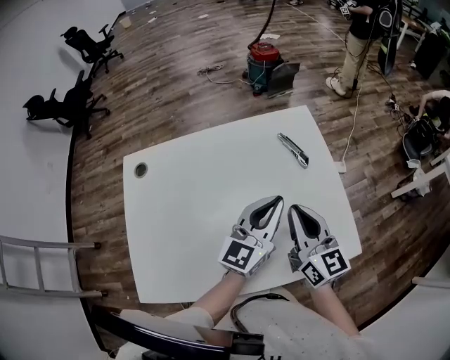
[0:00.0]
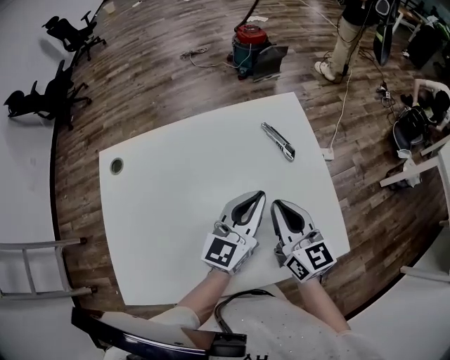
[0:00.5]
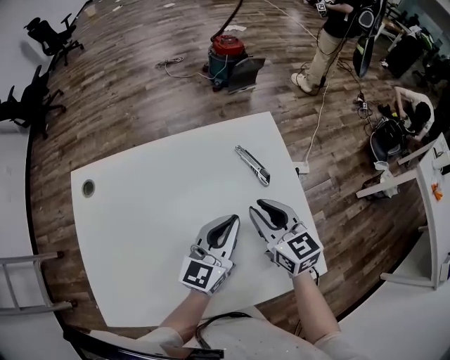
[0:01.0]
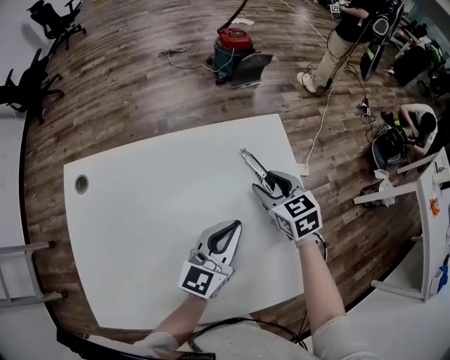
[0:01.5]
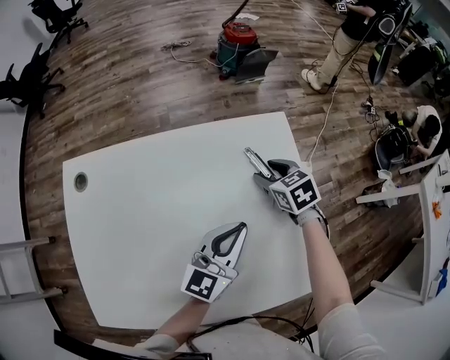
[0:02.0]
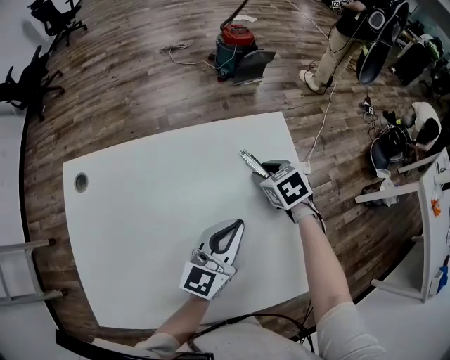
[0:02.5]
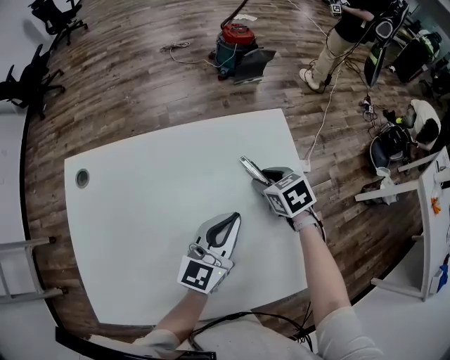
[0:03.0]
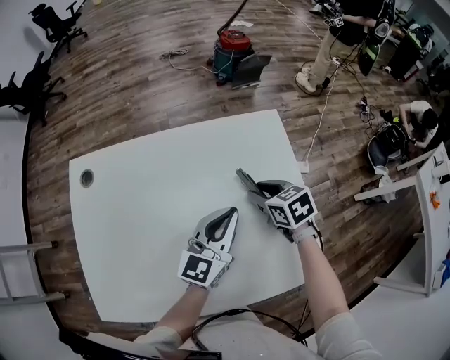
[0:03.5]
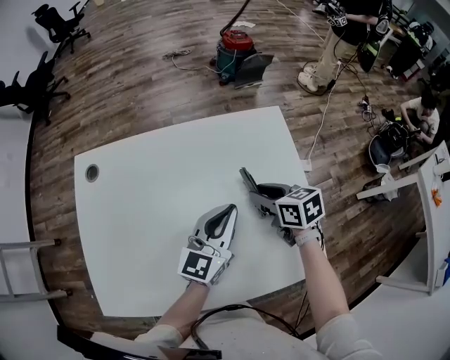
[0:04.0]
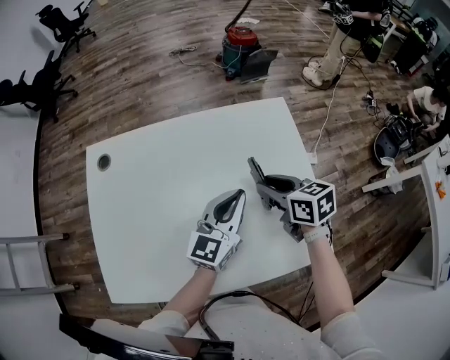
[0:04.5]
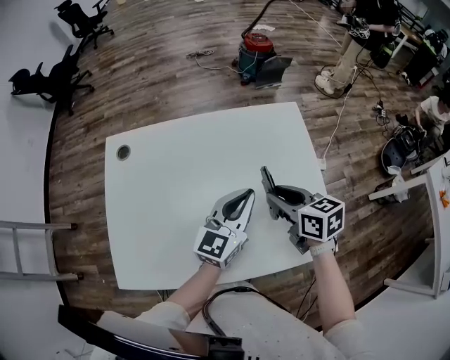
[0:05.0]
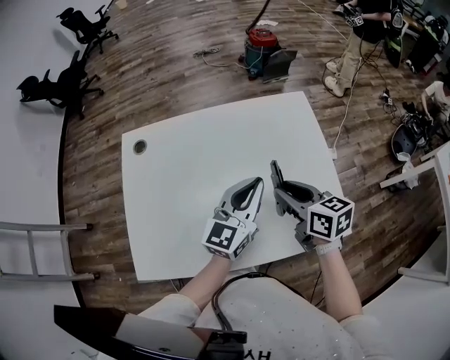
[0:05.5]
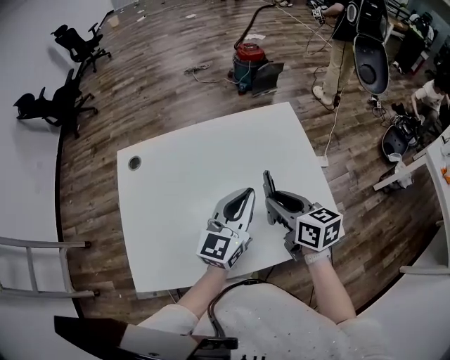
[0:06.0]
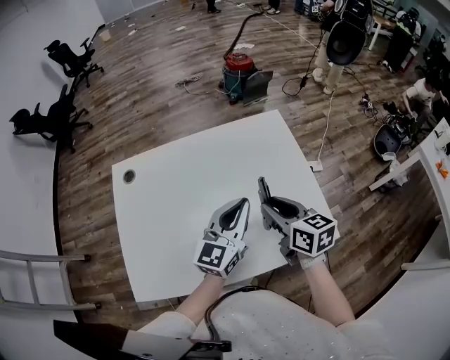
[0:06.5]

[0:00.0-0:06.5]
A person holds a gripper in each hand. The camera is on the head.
0:00.0 to 0:02.0: The right gripper is displaced forward and downward by roughly 30 cm, points its fingers approximately 50 degrees further downward, and opens; the left gripper is displaced downward and forward by approximately 10 cm.
0:02.0 to 0:04.5: The right gripper shifts approximately 15 cm backward, upward and to the left, and turns by about 30 degrees.
0:04.5 to 0:06.5: Both grippers move backward and upward, approximately 10 cm.

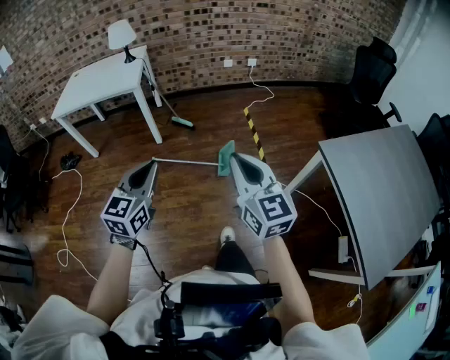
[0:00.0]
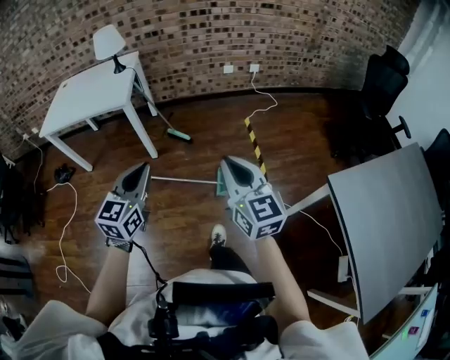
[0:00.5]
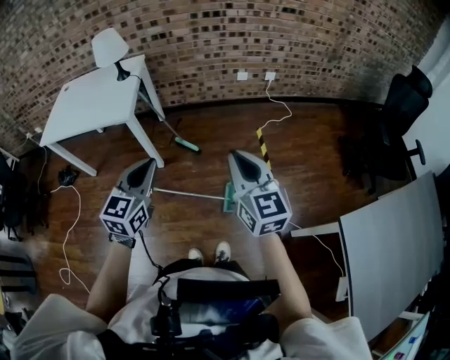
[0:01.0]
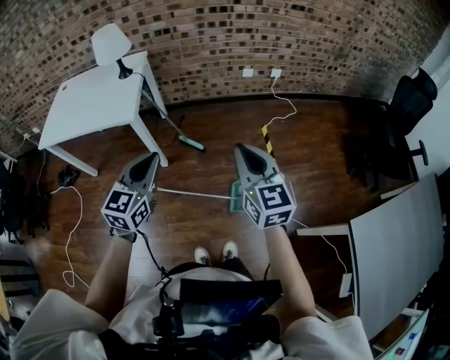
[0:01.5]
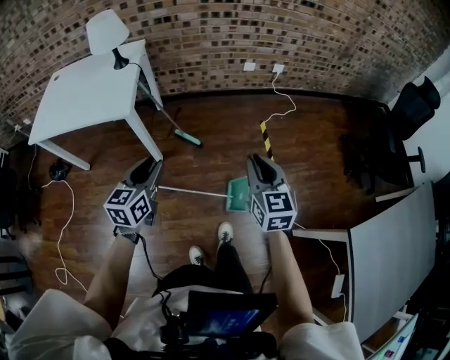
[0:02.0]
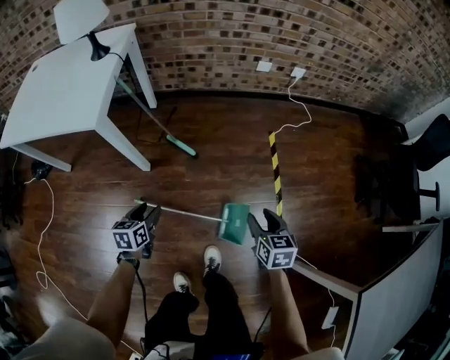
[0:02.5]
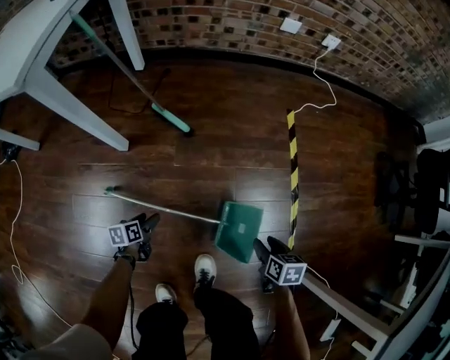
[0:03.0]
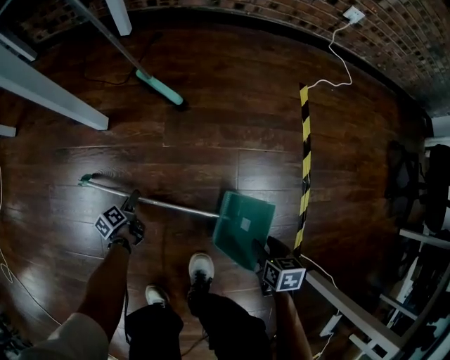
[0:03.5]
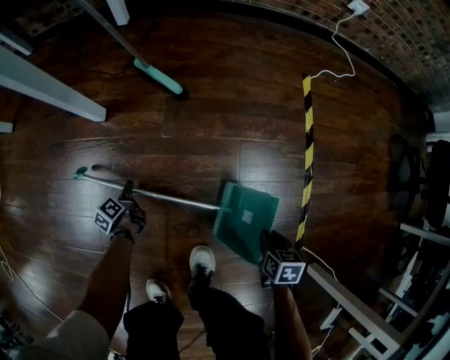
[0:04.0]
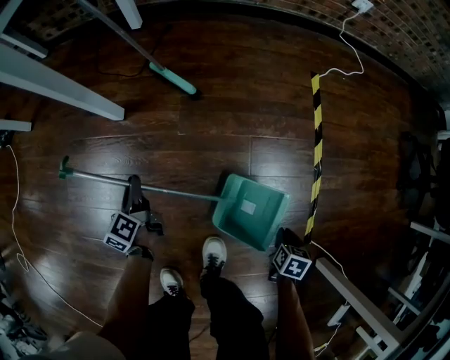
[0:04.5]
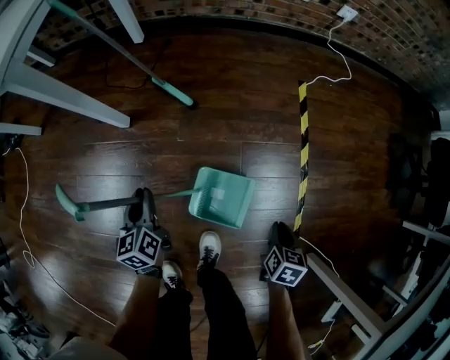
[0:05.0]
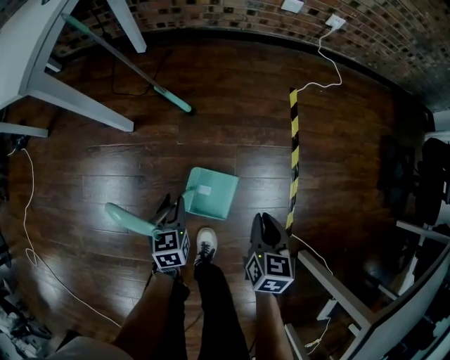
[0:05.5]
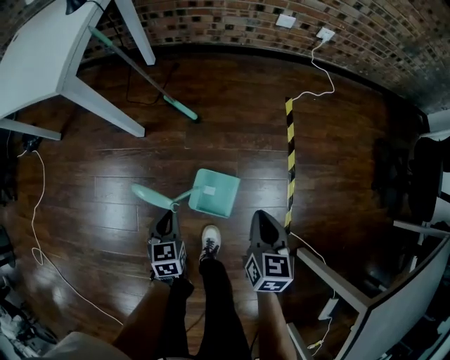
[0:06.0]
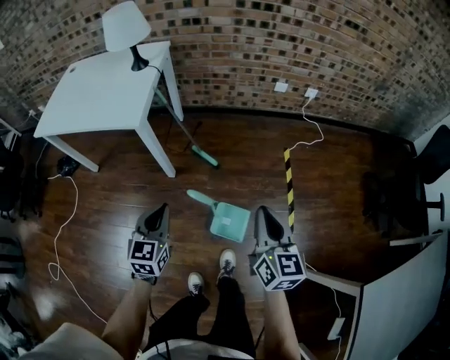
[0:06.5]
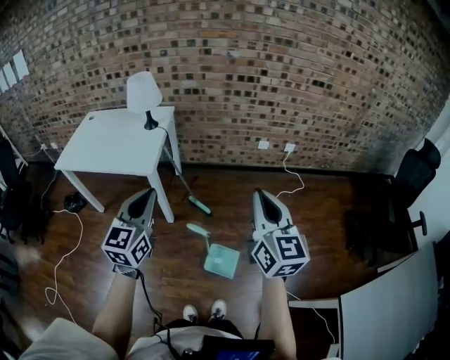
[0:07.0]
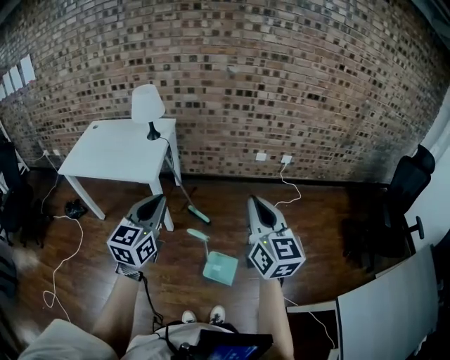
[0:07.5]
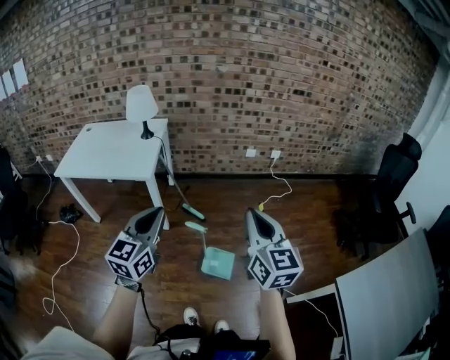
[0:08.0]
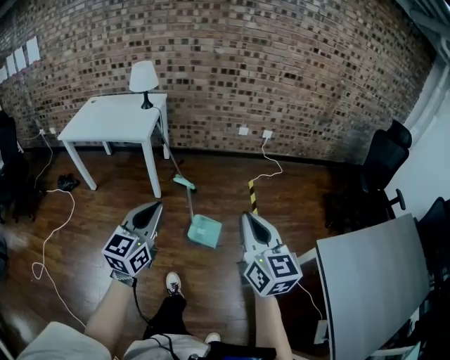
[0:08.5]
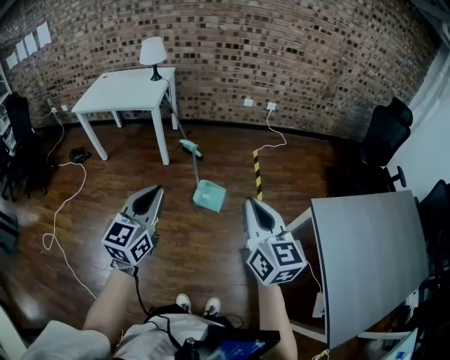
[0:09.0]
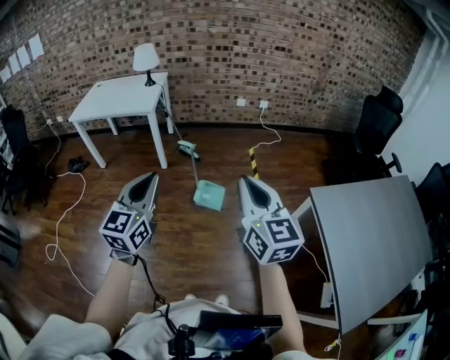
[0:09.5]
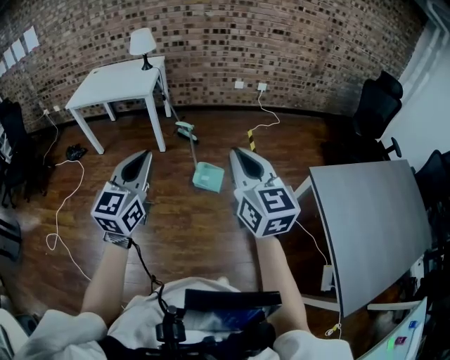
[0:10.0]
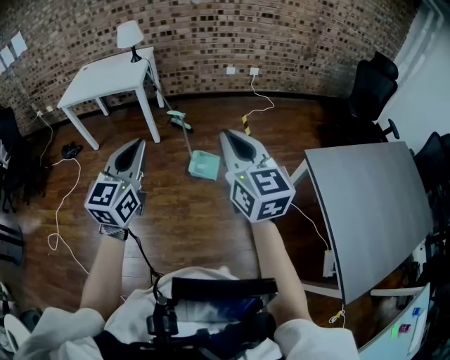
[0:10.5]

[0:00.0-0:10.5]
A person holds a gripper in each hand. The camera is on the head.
0:00.0 to 0:02.0: Both grippers are carried forward, approximately 50 cm. The left gripper opens its fingers.
0:02.0 to 0:04.0: The two grippers go some 80 cm downward. The right gripper angles its fingers downward, by some 50 degrees, and opens, then closes once more. Meanwhile the left gripper twists roughly 70 degrees counterclockwise, seen from behind, and opens and closes again.
0:04.0 to 0:06.5: Both grippers move upward, approximately 70 cm. The right gripper angles its fingers upward, by roughly 50 degrees, while the left gripper rolls clockwise, seen from behind, by approximately 70 degrees, and closes its fingers.
0:06.5 to 0:08.5: Both grippers travel together backward and upward, approximately 40 cm. The left gripper rotates approximately 20 degrees.
0:08.5 to 0:10.5: Both grippers travel together backward, approximately 20 cm.

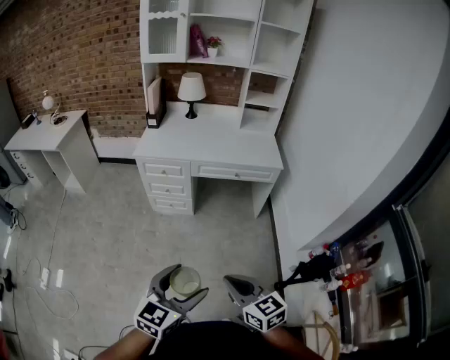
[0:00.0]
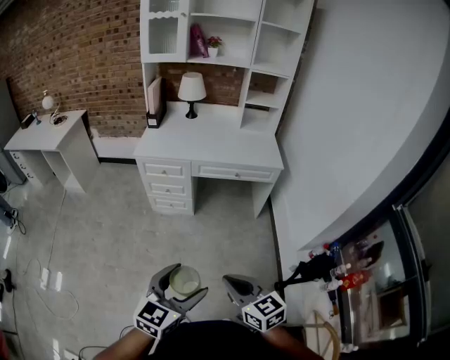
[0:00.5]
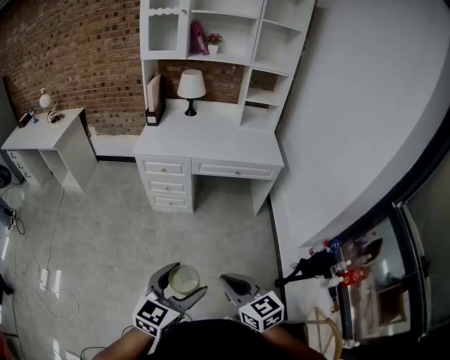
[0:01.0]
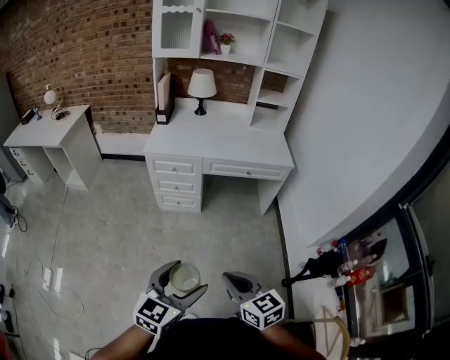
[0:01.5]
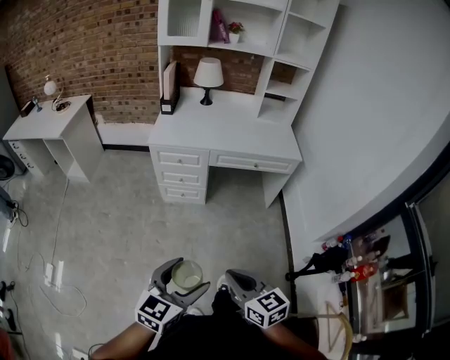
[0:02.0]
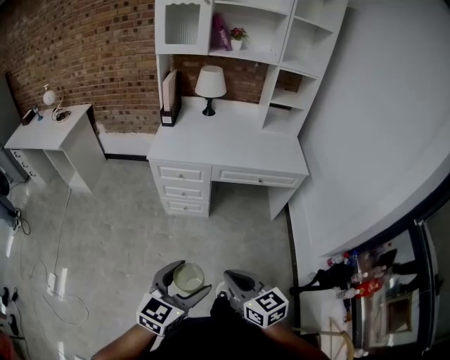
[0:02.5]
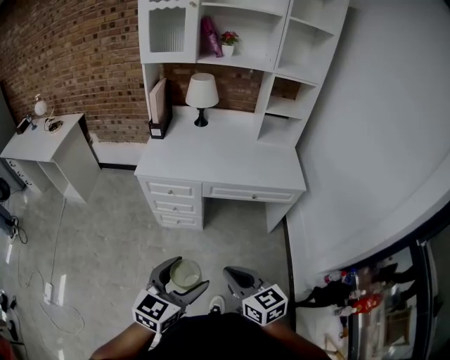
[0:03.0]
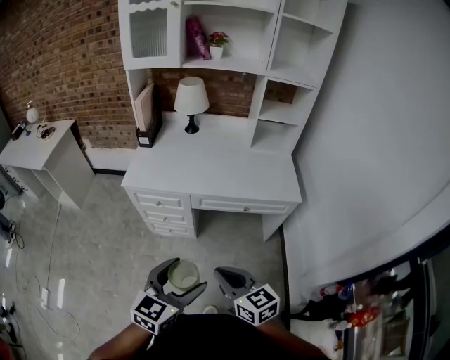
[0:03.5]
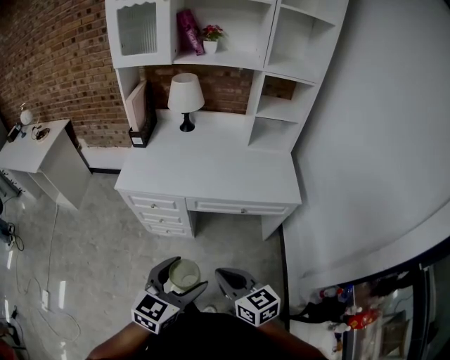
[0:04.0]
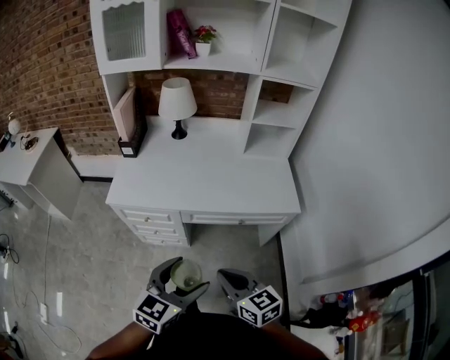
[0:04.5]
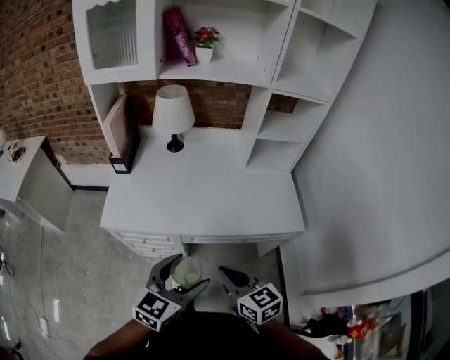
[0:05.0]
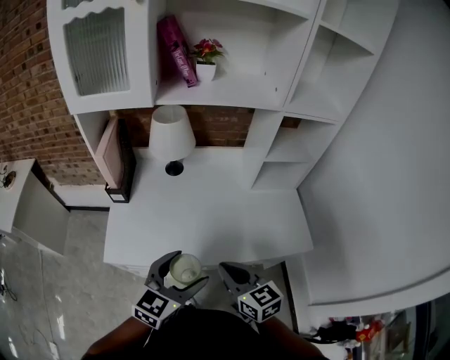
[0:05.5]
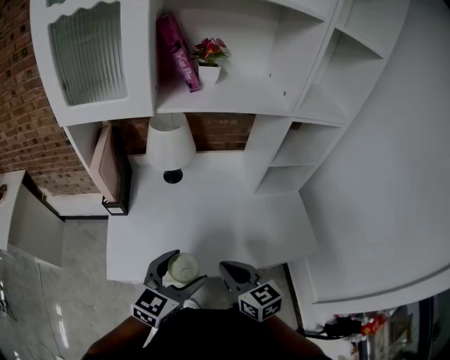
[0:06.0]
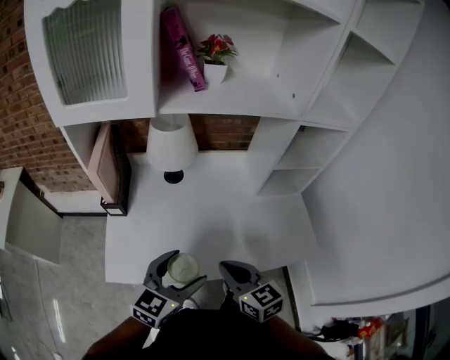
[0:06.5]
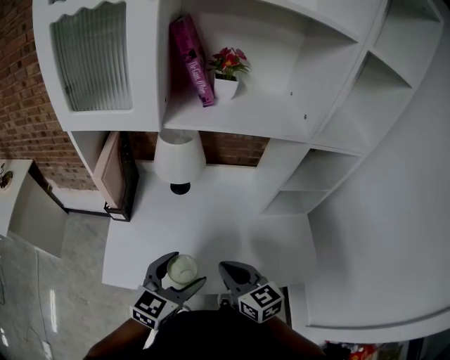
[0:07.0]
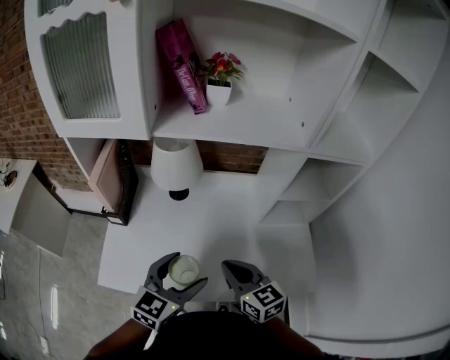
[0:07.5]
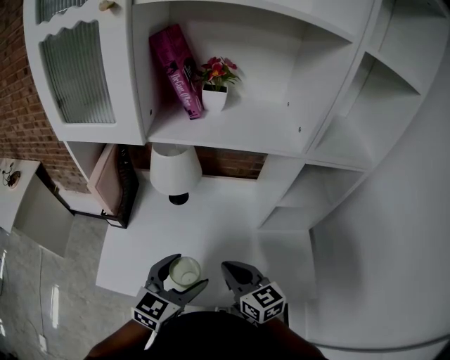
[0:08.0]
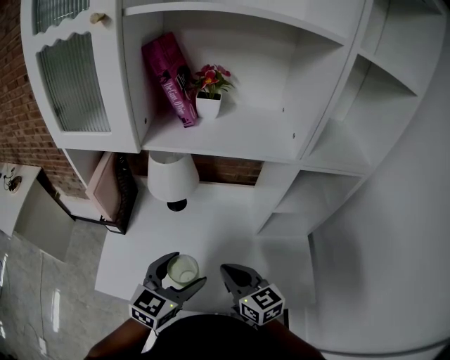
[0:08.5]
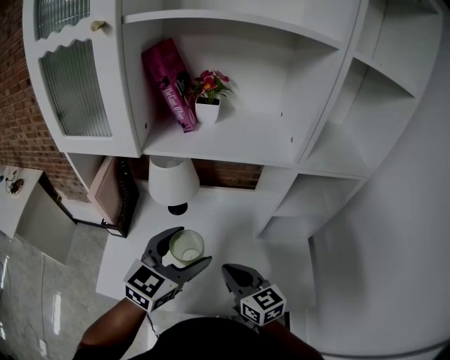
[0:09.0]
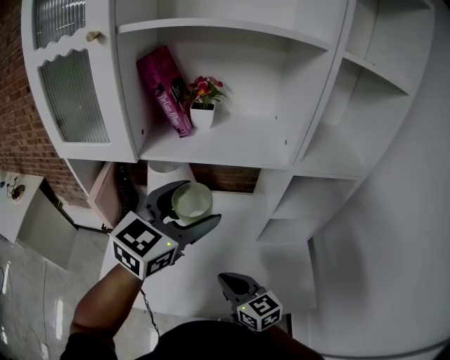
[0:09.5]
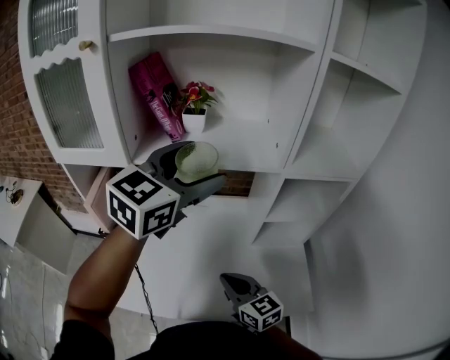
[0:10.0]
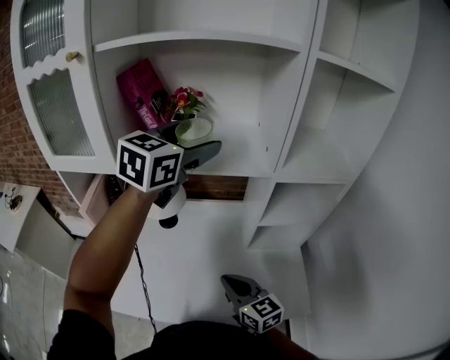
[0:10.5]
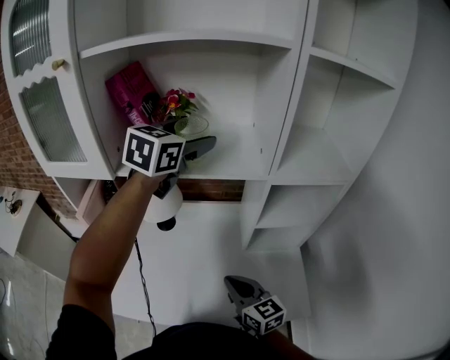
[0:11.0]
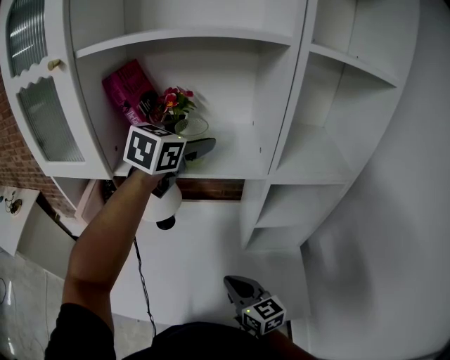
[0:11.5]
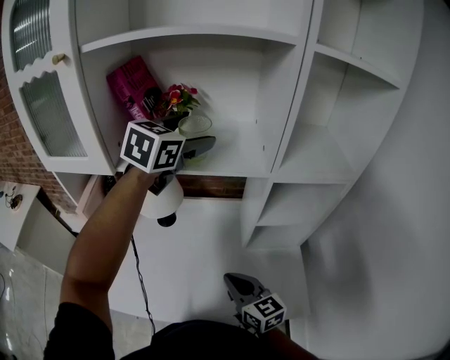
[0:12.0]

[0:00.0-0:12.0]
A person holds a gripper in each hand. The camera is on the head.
0:00.0 to 0:02.0: The two grippers go about 10 cm to the left.
0:02.0 to 0:04.0: The left gripper moves forward and to the right, about 35 cm. Meanwhile the right gripper goes roughly 30 cm forward.
0:04.0 to 0:06.0: Both grippers move forward, about 40 cm.
0:06.0 to 0:08.0: Both grippers move forward and to the right, about 15 cm.
0:08.0 to 0:10.0: The left gripper shifts about 30 cm upward and forward.
0:10.0 to 0:12.0: The right gripper ends up about 5 cm from where it was, while the left gripper goes roughly 15 cm forward.
